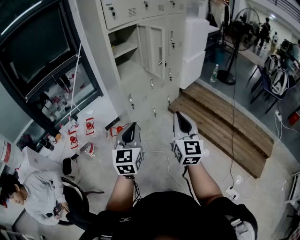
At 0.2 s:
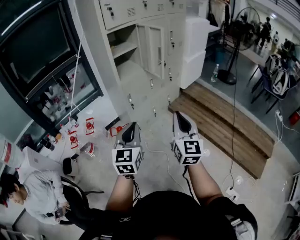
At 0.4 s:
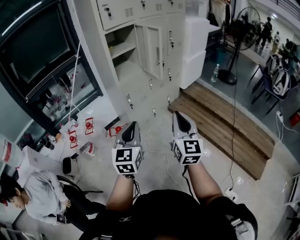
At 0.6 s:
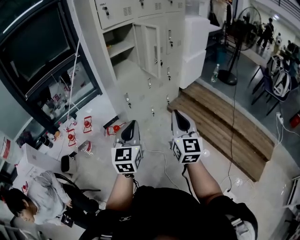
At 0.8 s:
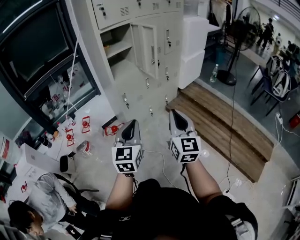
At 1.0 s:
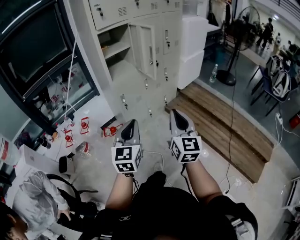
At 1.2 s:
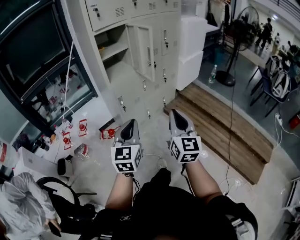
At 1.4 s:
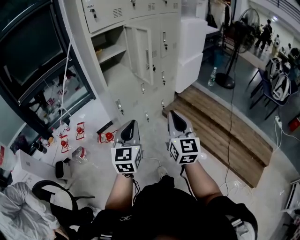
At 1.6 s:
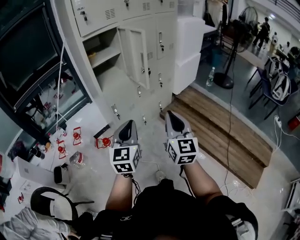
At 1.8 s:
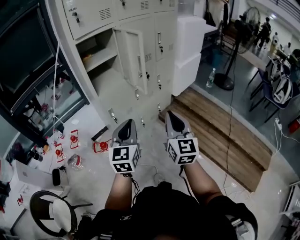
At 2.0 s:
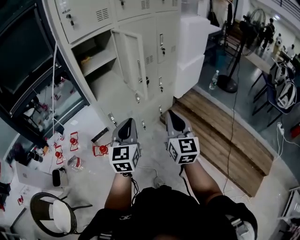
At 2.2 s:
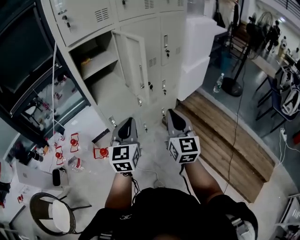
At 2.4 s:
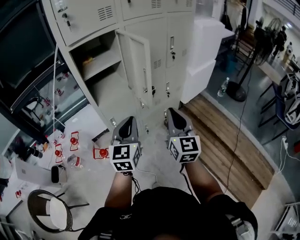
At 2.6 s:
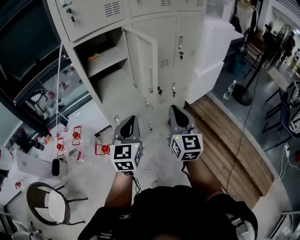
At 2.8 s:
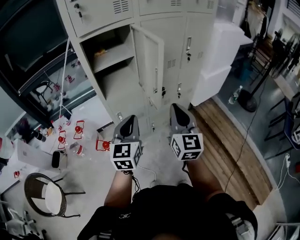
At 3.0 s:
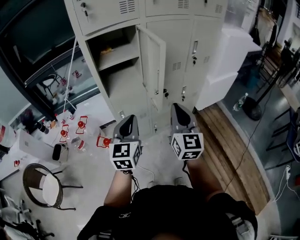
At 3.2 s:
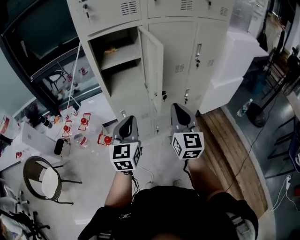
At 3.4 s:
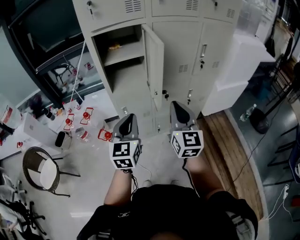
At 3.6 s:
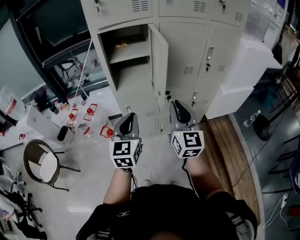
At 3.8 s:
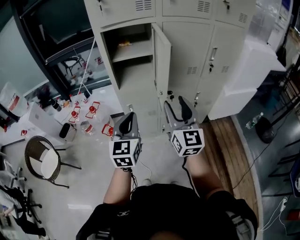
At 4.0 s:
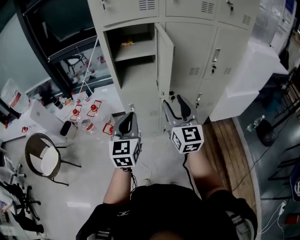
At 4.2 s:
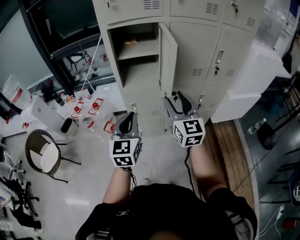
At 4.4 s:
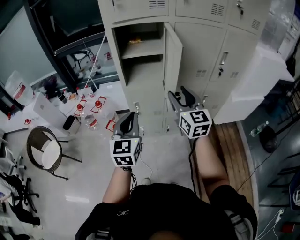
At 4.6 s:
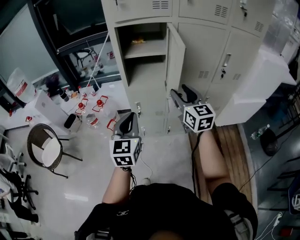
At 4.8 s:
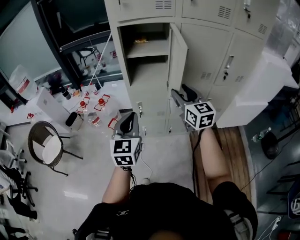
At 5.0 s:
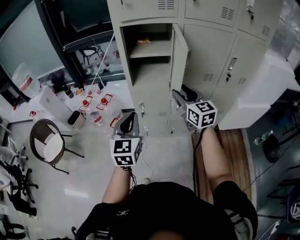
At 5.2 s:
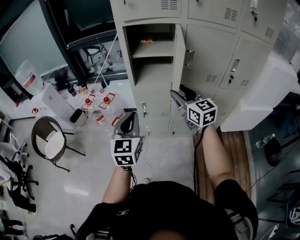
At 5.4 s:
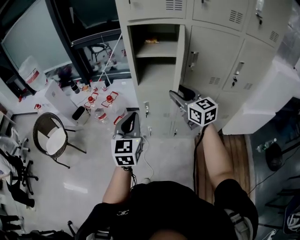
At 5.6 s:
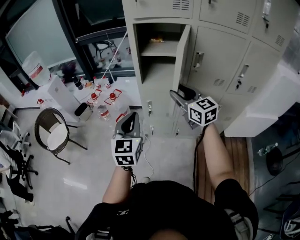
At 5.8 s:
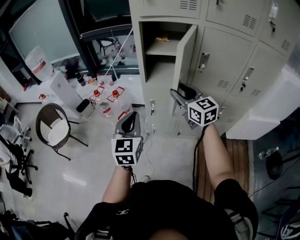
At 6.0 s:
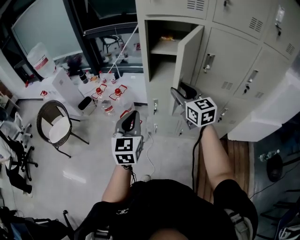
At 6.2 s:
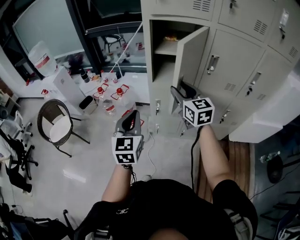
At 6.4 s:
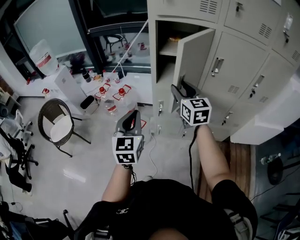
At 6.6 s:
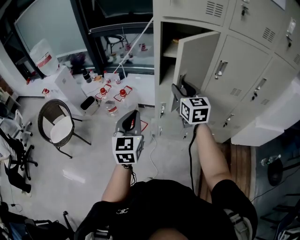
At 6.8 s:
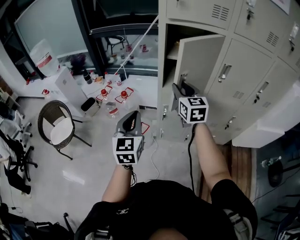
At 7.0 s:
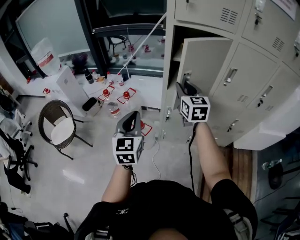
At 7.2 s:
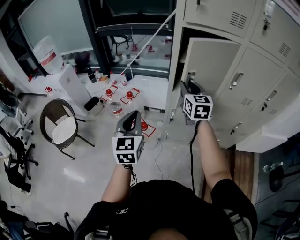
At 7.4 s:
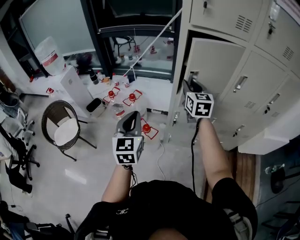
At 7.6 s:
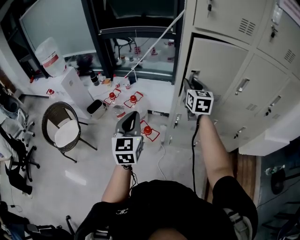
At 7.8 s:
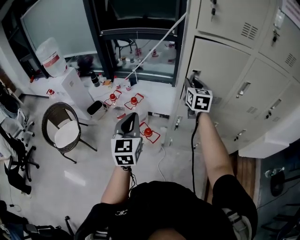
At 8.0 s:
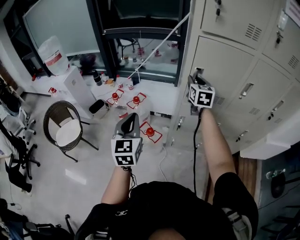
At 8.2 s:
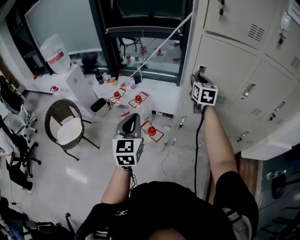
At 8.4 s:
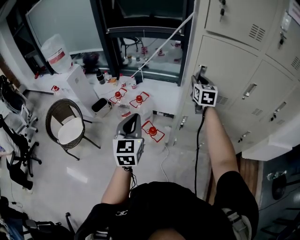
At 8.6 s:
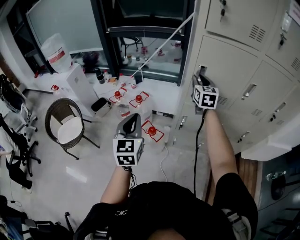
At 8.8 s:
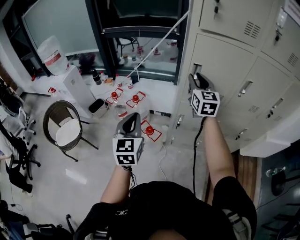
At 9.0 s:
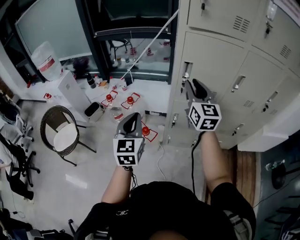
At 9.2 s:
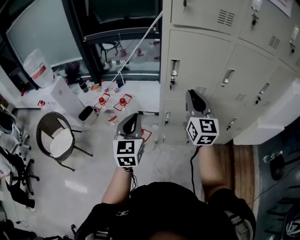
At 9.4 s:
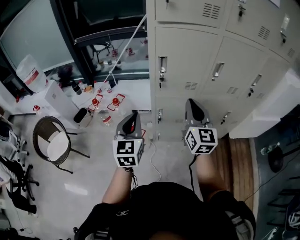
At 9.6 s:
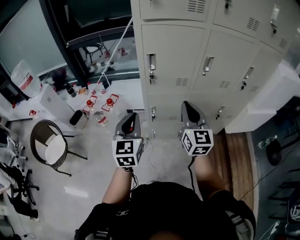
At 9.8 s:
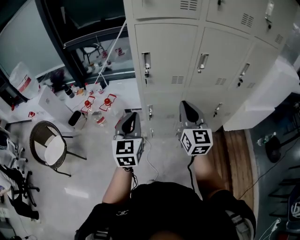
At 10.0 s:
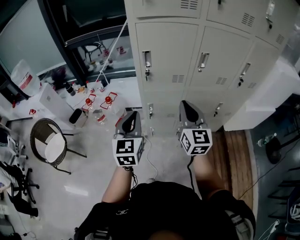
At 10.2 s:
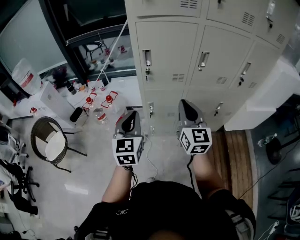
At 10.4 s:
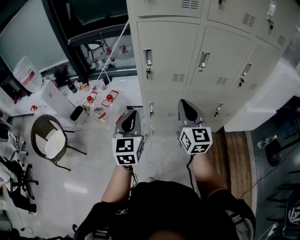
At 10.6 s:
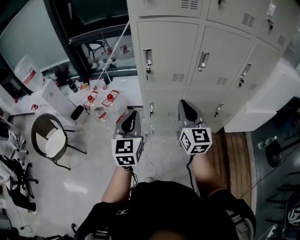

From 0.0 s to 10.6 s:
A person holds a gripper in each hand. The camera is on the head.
From 0.0 s to 1.6 s: The two grippers go roughly 15 cm forward and to the right.
From 1.6 s to 3.0 s: The grippers both shift forward by approximately 25 cm.
From 3.0 s to 4.6 s: The right gripper ends up some 10 cm from where it was, swivels about 30 degrees, and opens up. The left gripper changes its angle by about 20 degrees.
From 4.6 s to 6.0 s: The left gripper shifts roughly 5 cm to the left; the right gripper moves to the left and forward, roughly 10 cm.
From 6.0 s to 7.6 s: The right gripper shifts approximately 20 cm forward and to the left, while the left gripper is displaced to the left and forward by roughly 20 cm.
From 7.6 s to 9.0 s: The right gripper travels backward and upward by some 10 cm.
From 9.0 s to 10.6 s: The left gripper travels to the right by about 15 cm, while the right gripper goes approximately 20 cm backward, to the right and downward, and closes.

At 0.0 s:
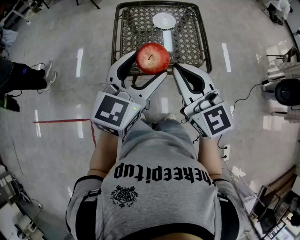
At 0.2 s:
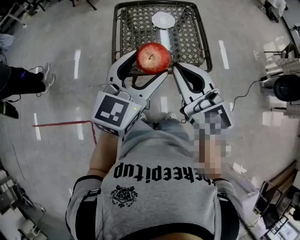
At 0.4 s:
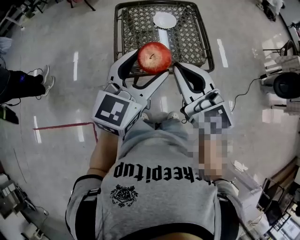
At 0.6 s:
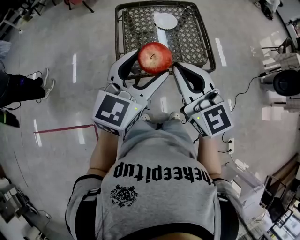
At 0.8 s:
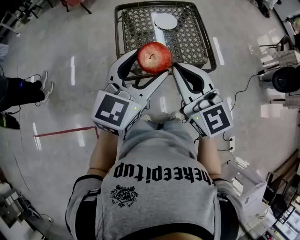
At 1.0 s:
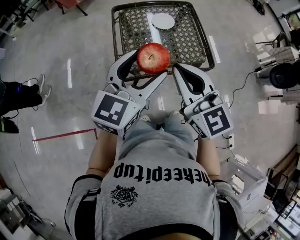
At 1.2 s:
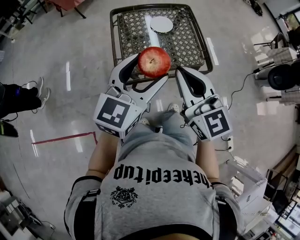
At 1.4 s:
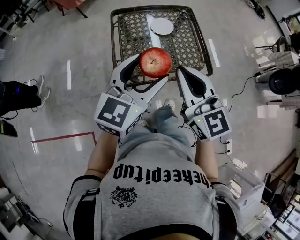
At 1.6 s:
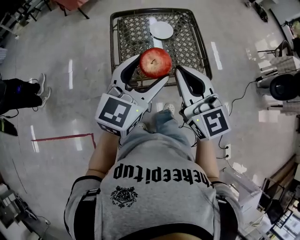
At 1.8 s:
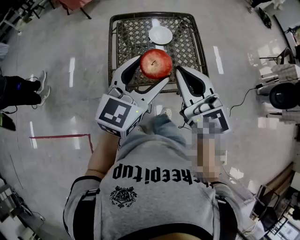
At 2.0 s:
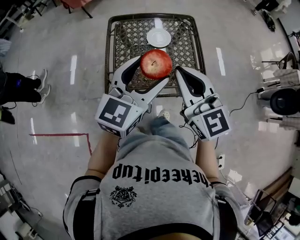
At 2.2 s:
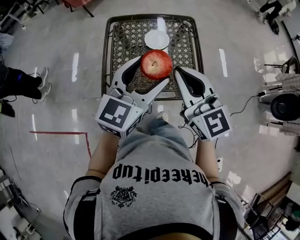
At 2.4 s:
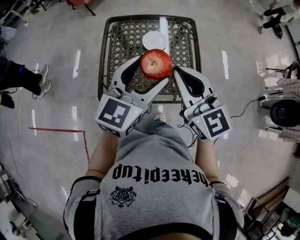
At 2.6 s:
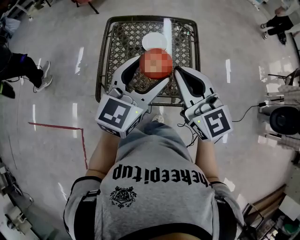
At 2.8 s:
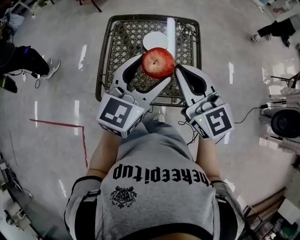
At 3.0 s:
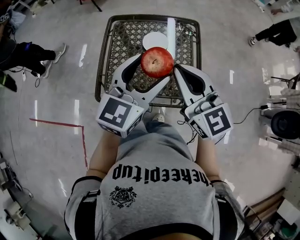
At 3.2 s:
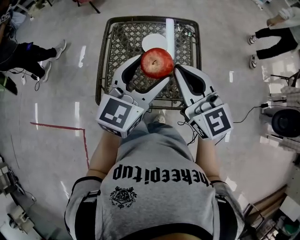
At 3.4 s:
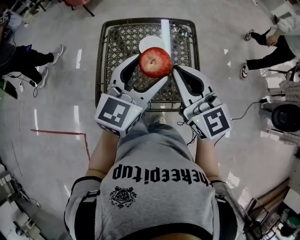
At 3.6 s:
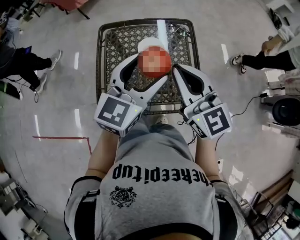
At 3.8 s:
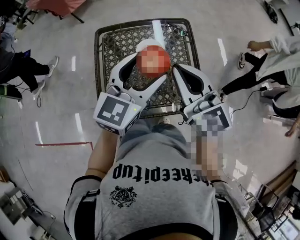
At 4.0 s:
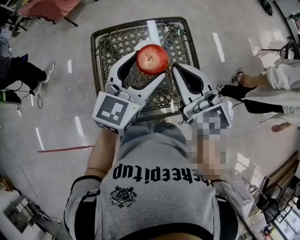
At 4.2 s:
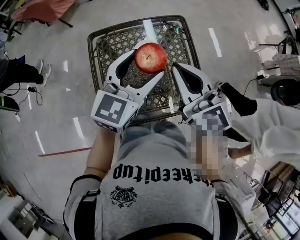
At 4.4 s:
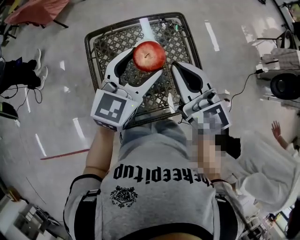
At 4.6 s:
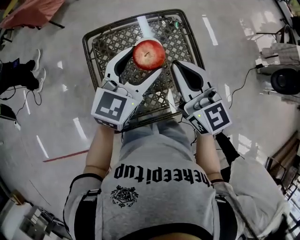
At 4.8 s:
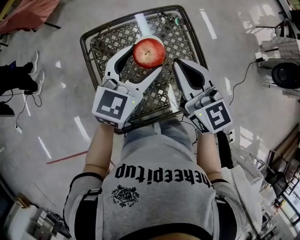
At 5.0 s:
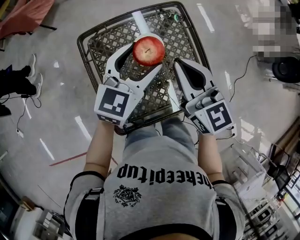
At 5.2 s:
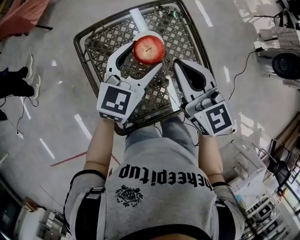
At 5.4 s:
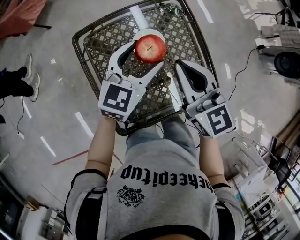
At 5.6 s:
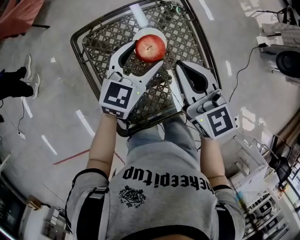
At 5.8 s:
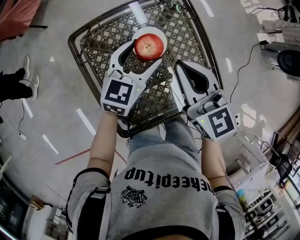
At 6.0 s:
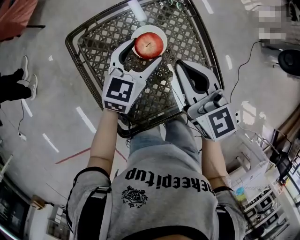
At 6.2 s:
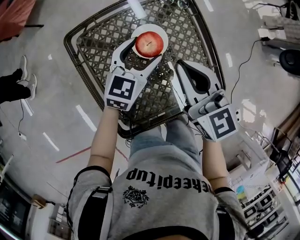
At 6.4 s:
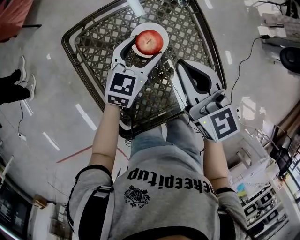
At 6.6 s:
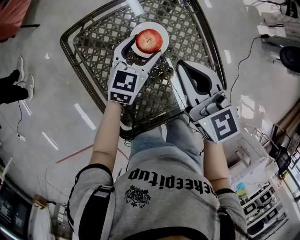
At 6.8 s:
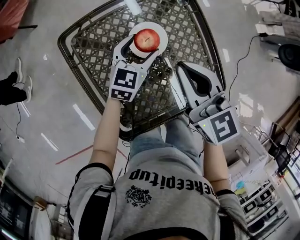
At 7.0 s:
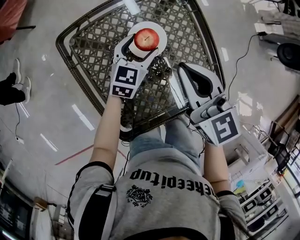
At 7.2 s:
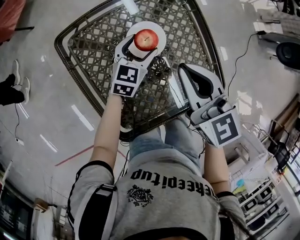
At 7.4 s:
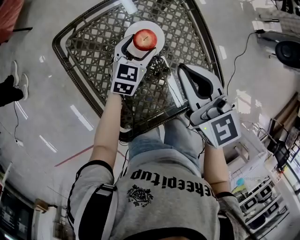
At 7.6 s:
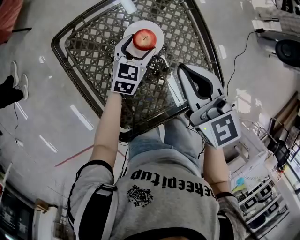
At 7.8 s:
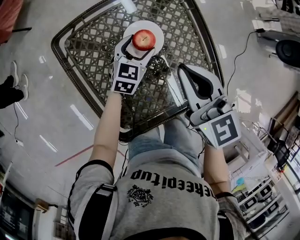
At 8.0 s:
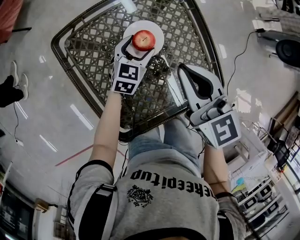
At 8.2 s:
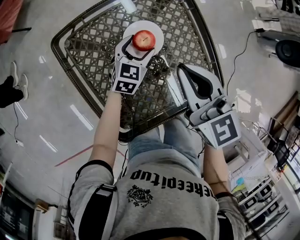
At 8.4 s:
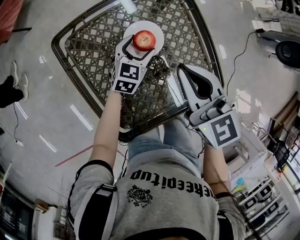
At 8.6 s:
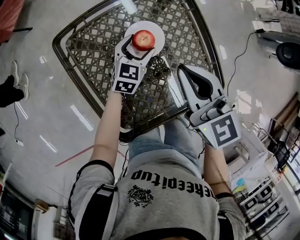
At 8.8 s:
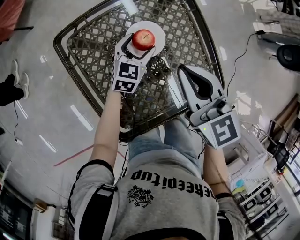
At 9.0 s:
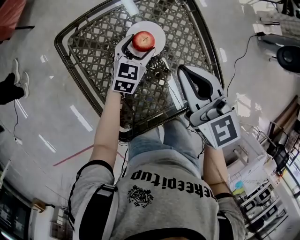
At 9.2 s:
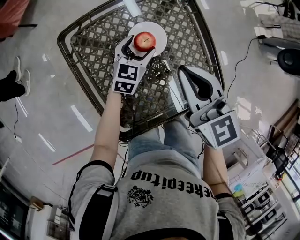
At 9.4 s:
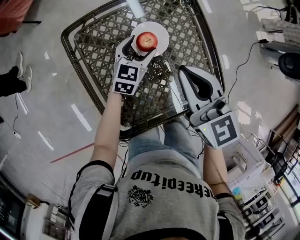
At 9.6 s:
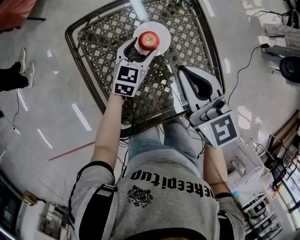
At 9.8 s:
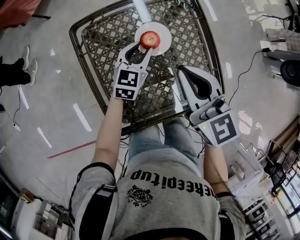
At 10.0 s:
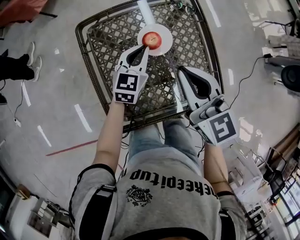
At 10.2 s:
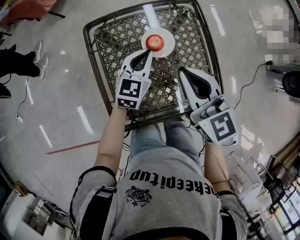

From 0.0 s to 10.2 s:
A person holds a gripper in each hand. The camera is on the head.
From 0.0 s to 1.4 s: Both grippers move to the left, approximately 5 cm.
From 1.4 s to 3.0 s: Both grippers travel together forward and to the right, about 20 cm.
From 3.0 s to 4.4 s: The left gripper heads forward and to the left, covering some 15 cm. The right gripper moves forward, some 10 cm.
From 4.4 s to 5.8 s: The left gripper goes approximately 20 cm downward and forward, while the right gripper is displaced downward and forward by about 10 cm.
From 5.8 s to 7.2 s: The left gripper is displaced downward by about 15 cm.
From 7.2 s to 8.8 s: The grippers stay close to where they were, moving slightly.
From 8.8 s to 10.2 s: The right gripper travels upward by some 5 cm. The left gripper heads upward and backward, covering some 15 cm, and closes.

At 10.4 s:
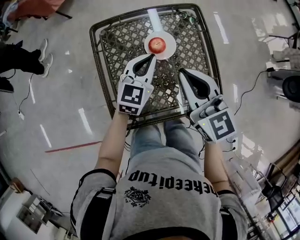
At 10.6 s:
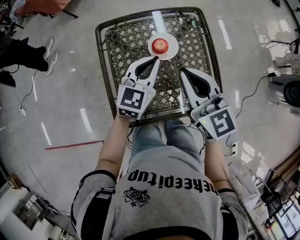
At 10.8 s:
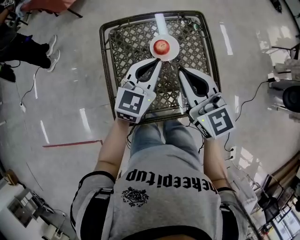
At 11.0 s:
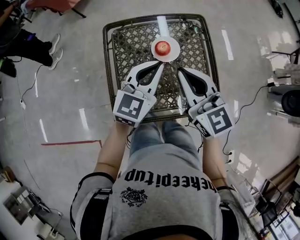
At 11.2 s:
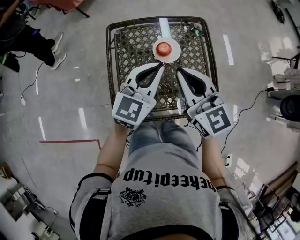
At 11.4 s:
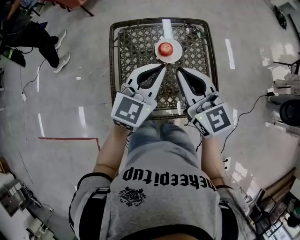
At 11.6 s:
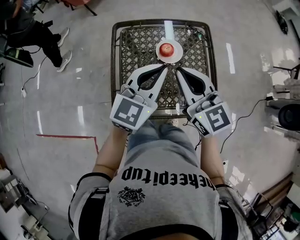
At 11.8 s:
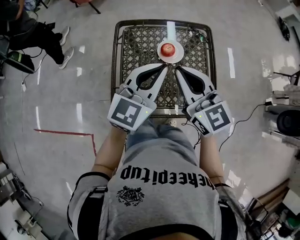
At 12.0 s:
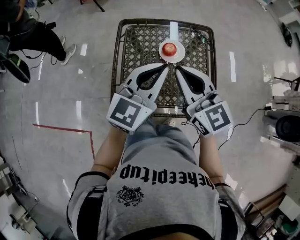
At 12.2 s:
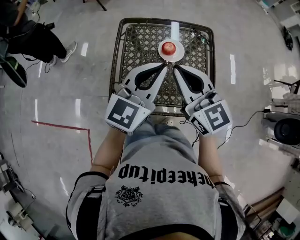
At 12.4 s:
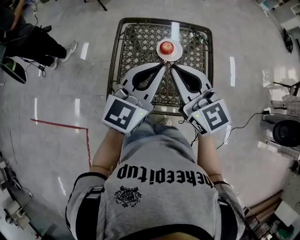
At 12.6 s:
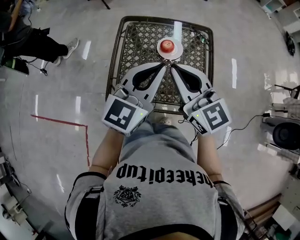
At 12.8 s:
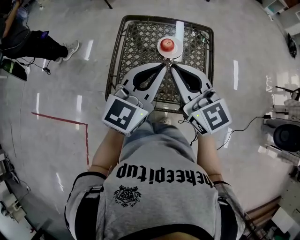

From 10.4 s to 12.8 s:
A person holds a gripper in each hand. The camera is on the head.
From 10.4 s to 11.6 s: The left gripper is displaced upward and backward by approximately 20 cm. Meanwhile the right gripper is displaced upward by approximately 5 cm.
From 11.6 s to 12.8 s: The left gripper ends up roughly 5 cm from where it was.
